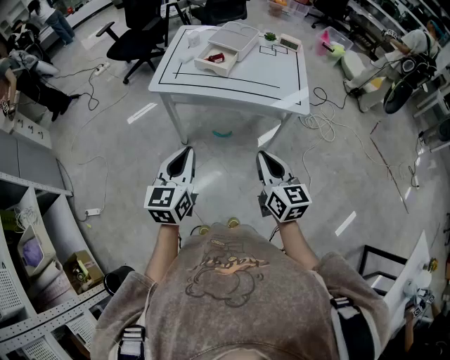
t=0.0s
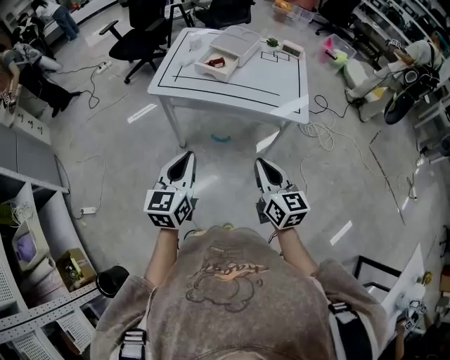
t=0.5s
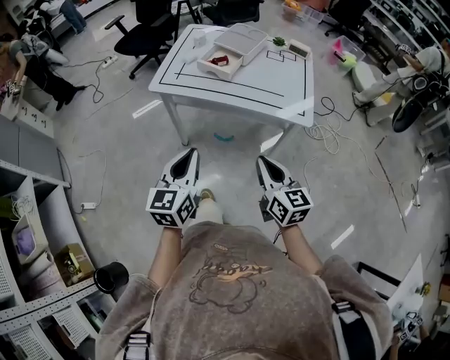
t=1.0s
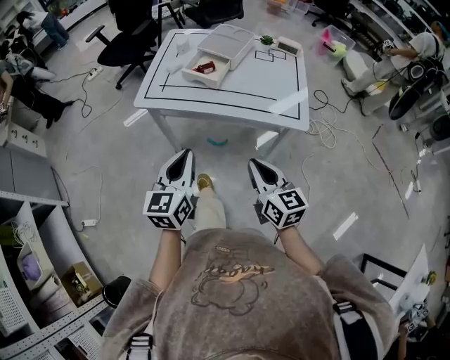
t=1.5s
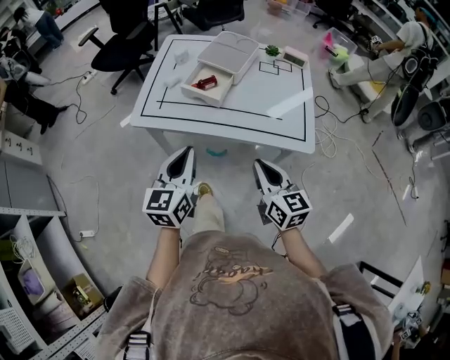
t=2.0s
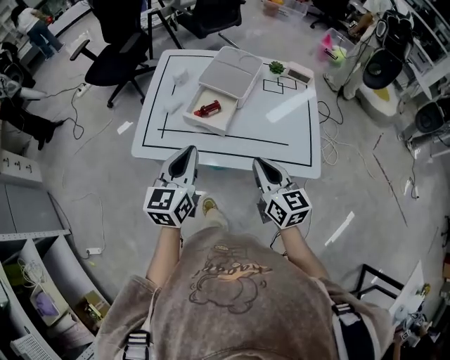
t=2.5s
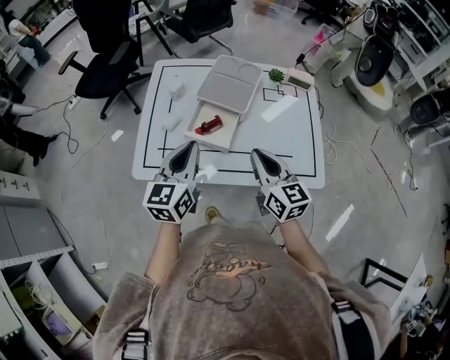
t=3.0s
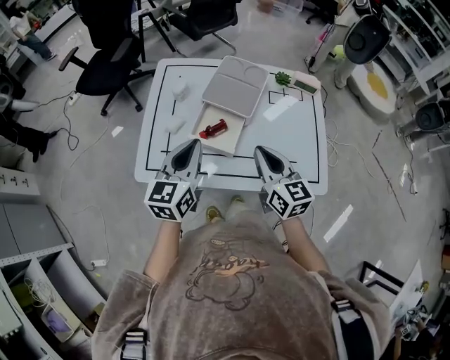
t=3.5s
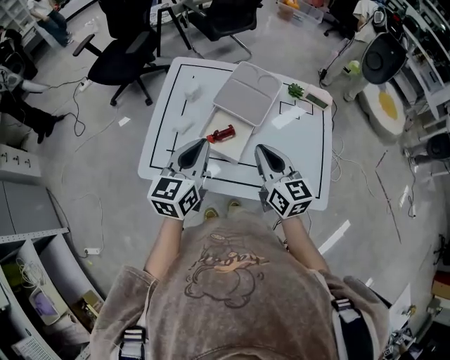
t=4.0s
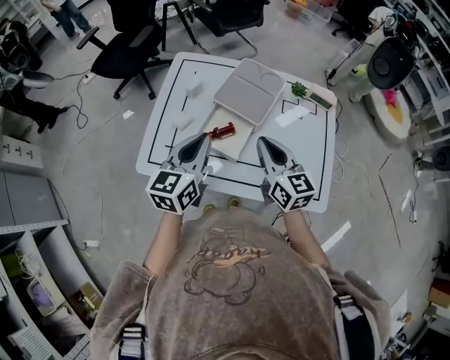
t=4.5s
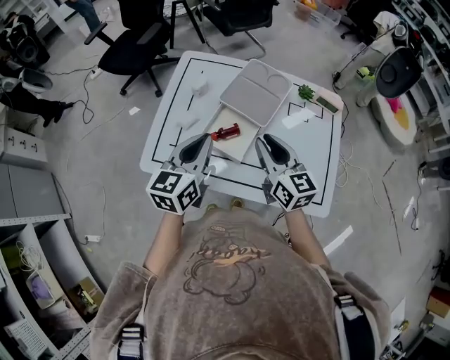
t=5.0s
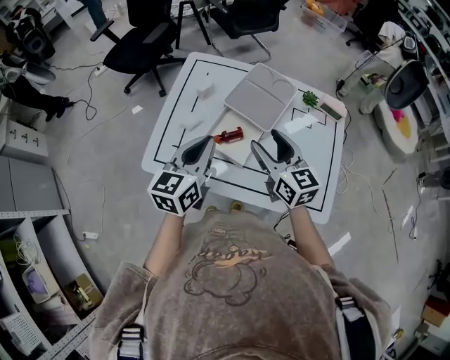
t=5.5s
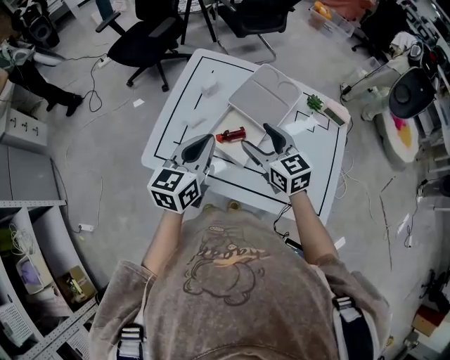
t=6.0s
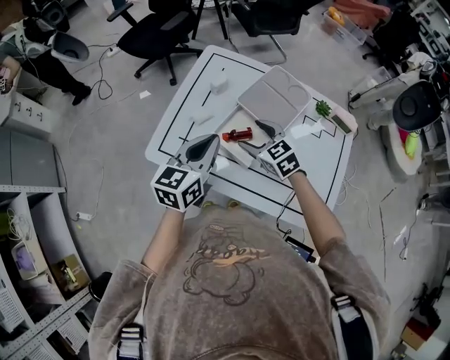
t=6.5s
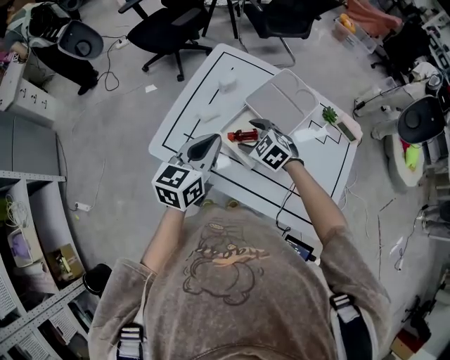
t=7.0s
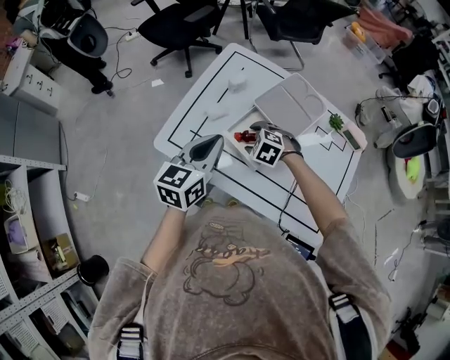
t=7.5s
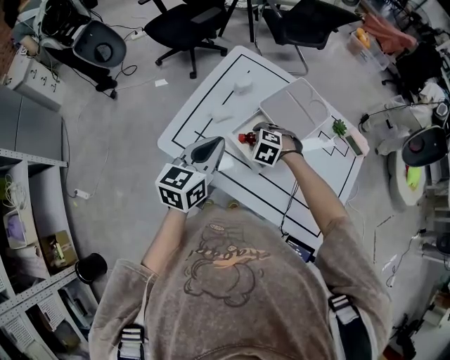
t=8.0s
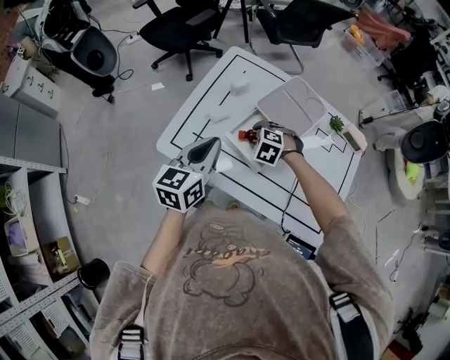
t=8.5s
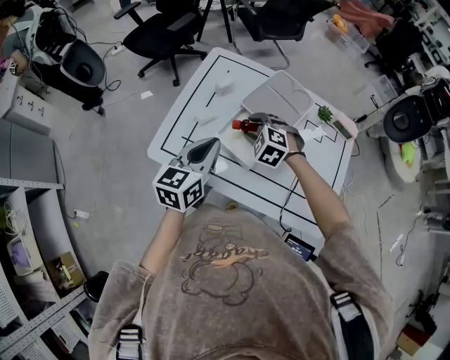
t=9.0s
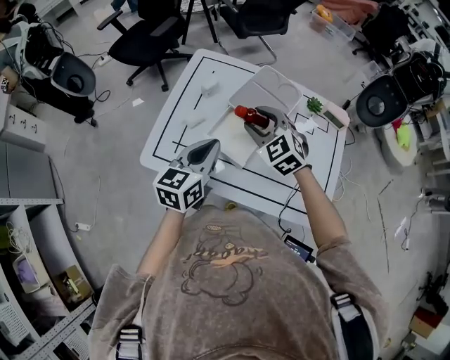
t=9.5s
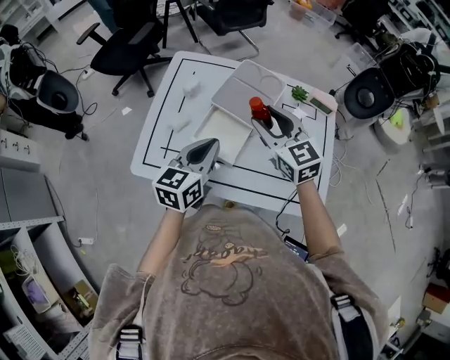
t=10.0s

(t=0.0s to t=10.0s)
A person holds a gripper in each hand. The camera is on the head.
t=0.0s - t=2.0s: The two grippers go some 20 cm forward.
t=2.0s - t=4.0s: The two grippers go about 25 cm forward.
t=4.0s - t=6.0s: The right gripper heads forward, covering about 5 cm, rotates approximately 20 degrees, and opens up.
t=6.0s - t=8.0s: The right gripper heads downward, covering about 15 cm, and points its fingers about 50 degrees further downward.
t=8.0s - t=10.0s: The right gripper heads upward and to the right, covering approximately 25 cm, and angles its fingers upward, by about 50 degrees; the left gripper shifts about 10 cm to the right.

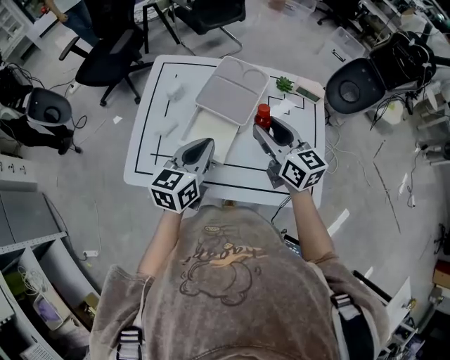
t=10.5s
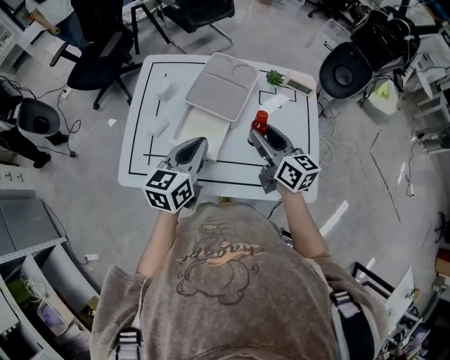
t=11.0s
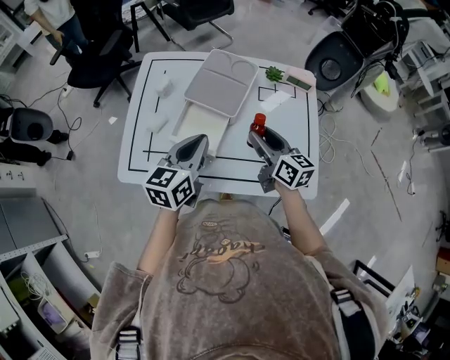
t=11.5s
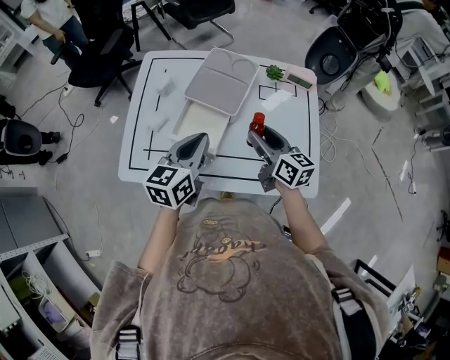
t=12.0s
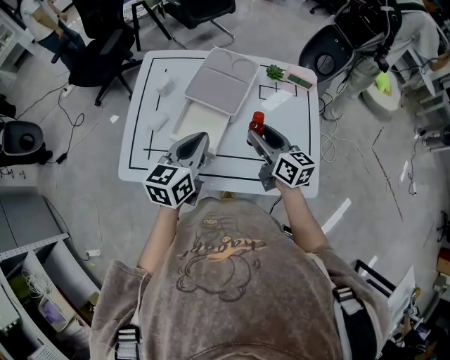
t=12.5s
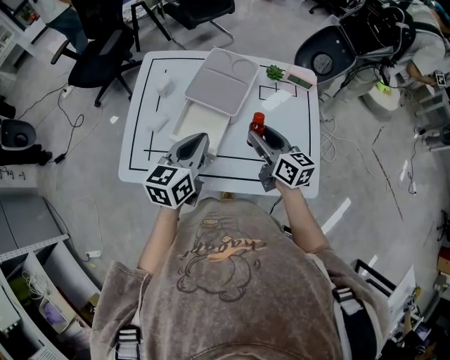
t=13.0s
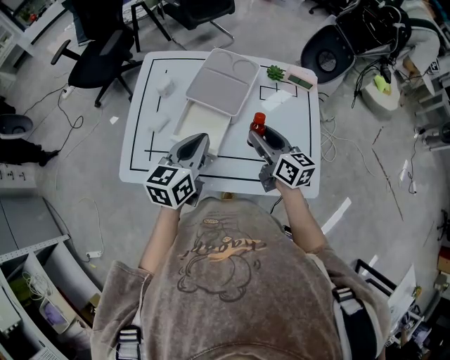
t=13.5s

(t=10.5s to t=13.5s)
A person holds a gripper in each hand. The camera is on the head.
t=10.5s - t=12.0s: The right gripper is displaced downward and backward by roughly 10 cm.
t=12.0s - t=13.5s: Both grippers stay about where they are.

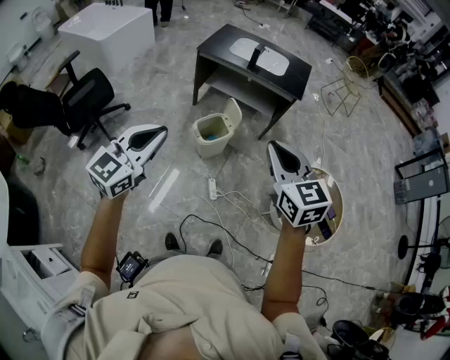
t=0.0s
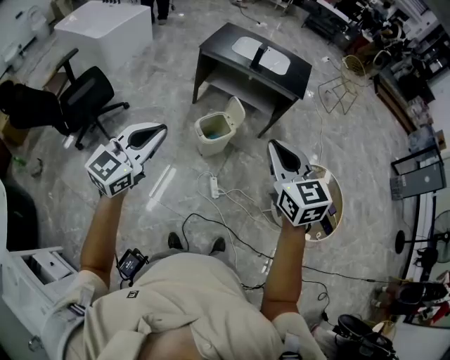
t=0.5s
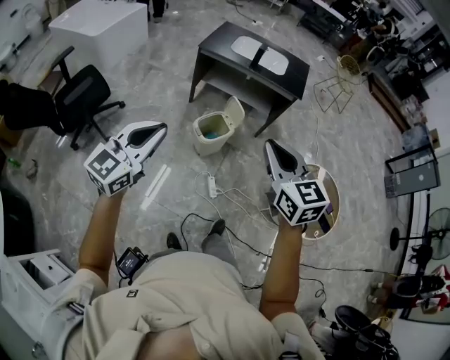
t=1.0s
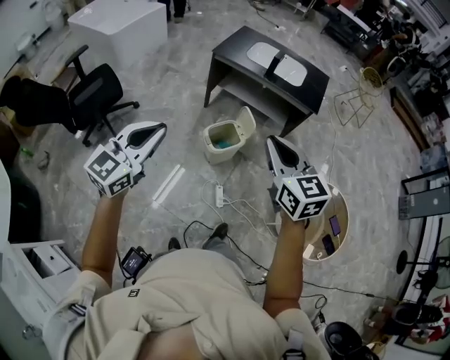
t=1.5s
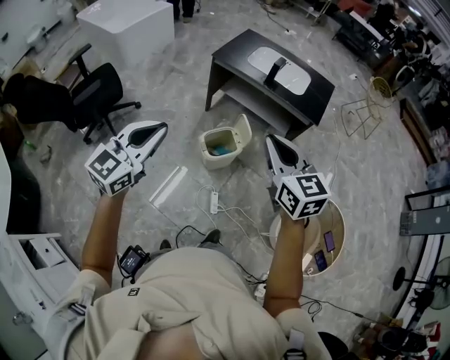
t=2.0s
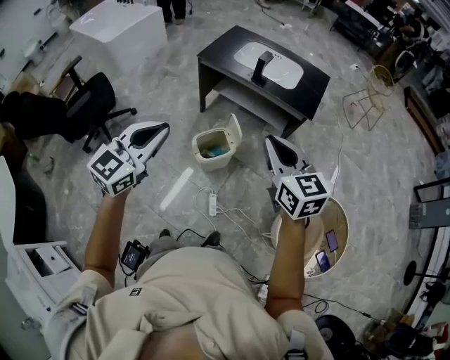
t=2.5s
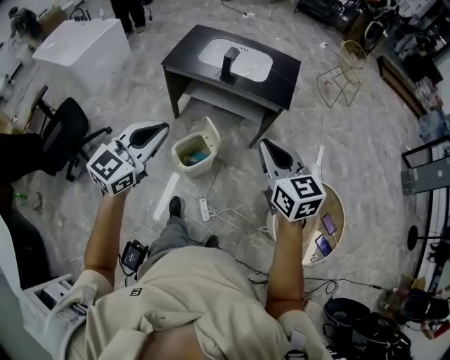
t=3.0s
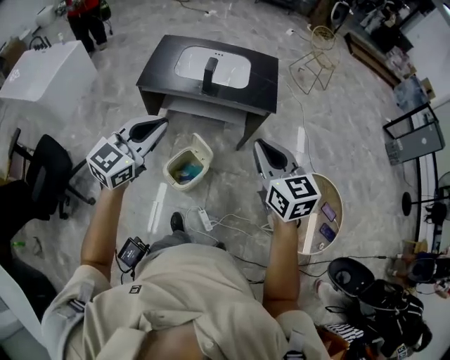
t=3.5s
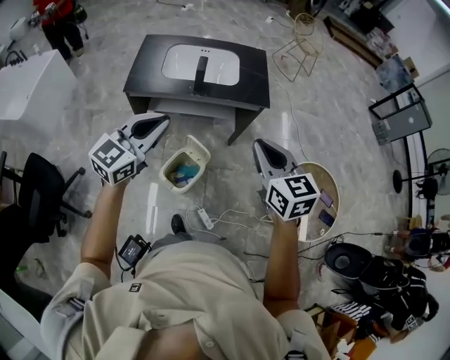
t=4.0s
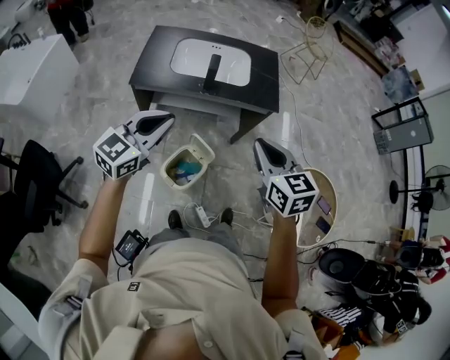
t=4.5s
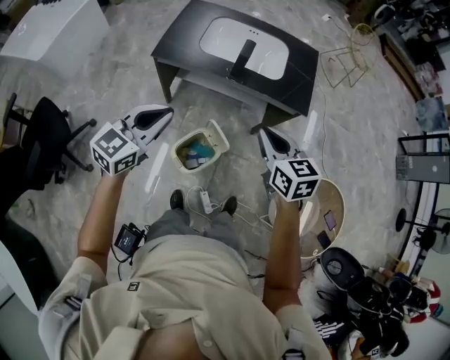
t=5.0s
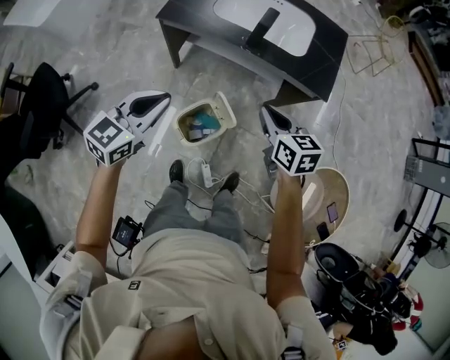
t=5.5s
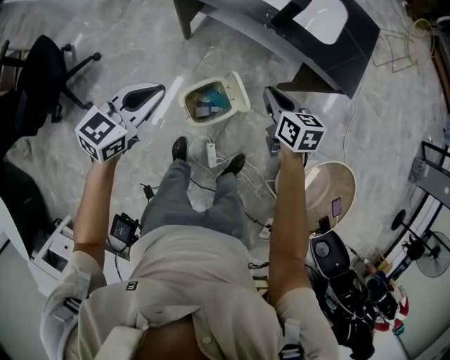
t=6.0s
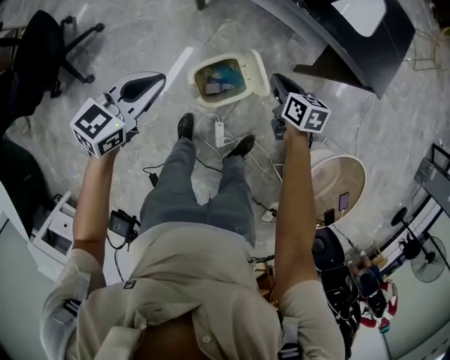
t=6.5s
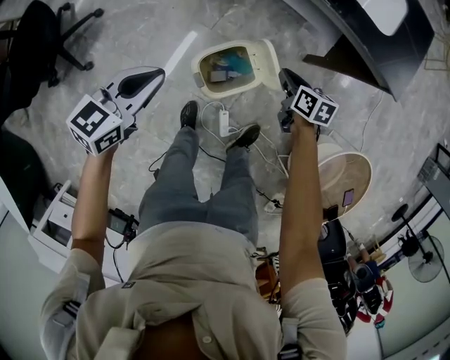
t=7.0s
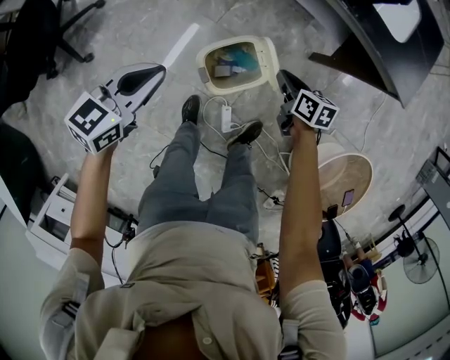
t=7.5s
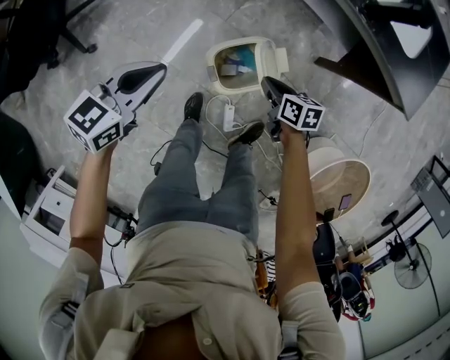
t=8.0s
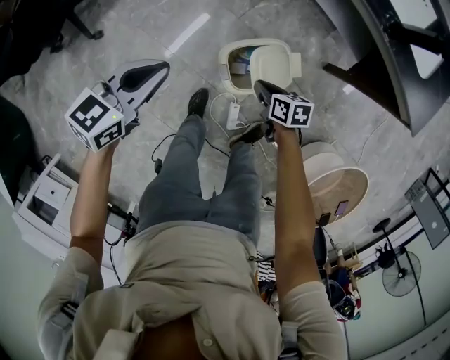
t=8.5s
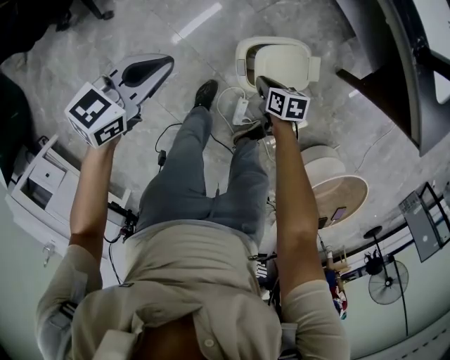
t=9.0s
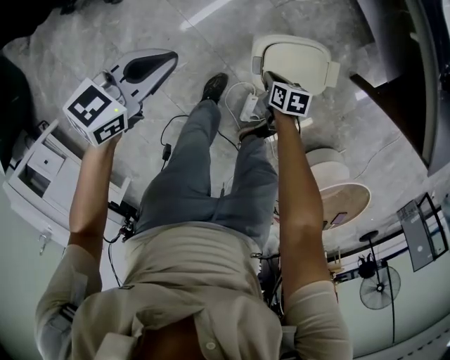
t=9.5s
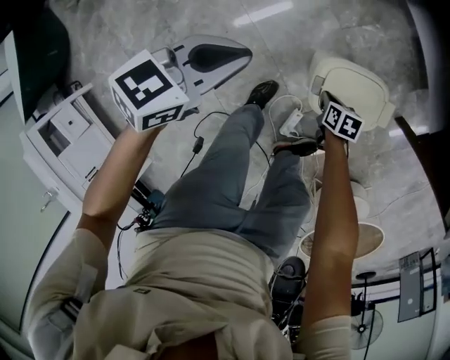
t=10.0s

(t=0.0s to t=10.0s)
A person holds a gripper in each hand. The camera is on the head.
t=0.0s - t=2.0s: The grippers both shift forward by approximately 15 cm.
t=2.0s - t=4.0s: The left gripper ends up approximately 35 cm from where it was, and turns by roughly 30 degrees. Meanwhile the right gripper moves roughly 20 cm, and rotates approximately 30 degrees.
t=4.0s - t=6.0s: The left gripper travels downward by roughly 25 cm, and swivels roughly 30 degrees, while the right gripper shifts about 40 cm downward and forward, and rotates approximately 30 degrees.
t=6.0s - t=8.0s: The right gripper heads downward, covering roughly 25 cm, and turns by about 30 degrees, while the left gripper goes some 20 cm downward and to the left.
t=8.0s - t=10.0s: The left gripper shifts about 15 cm to the left and downward. Meanwhile the right gripper is displaced downward and to the left by approximately 25 cm, and turns by some 30 degrees.

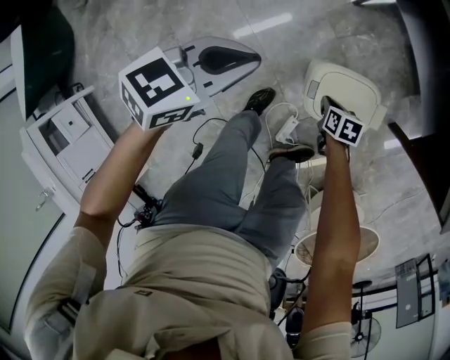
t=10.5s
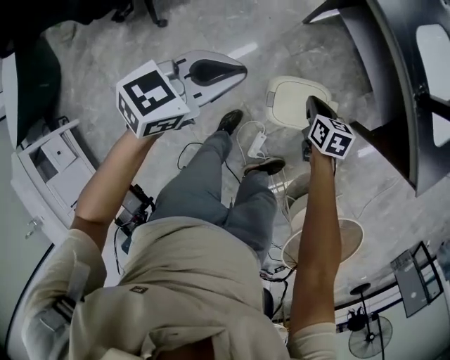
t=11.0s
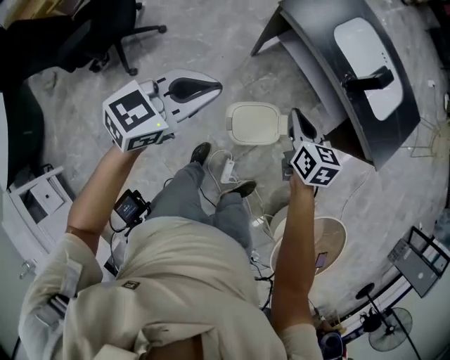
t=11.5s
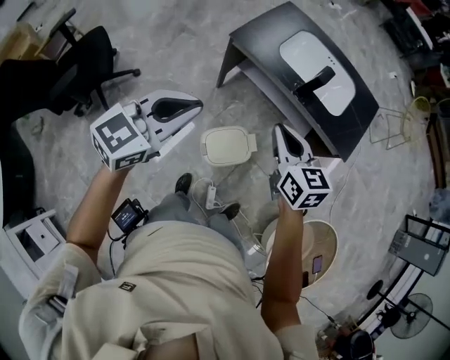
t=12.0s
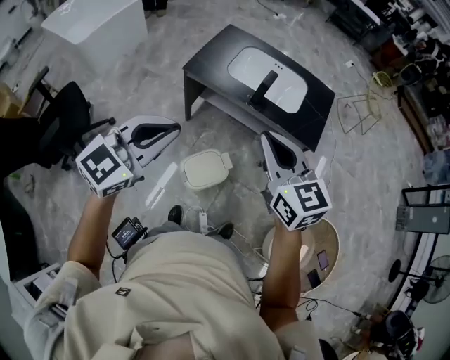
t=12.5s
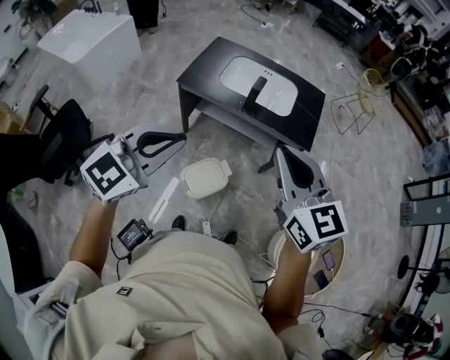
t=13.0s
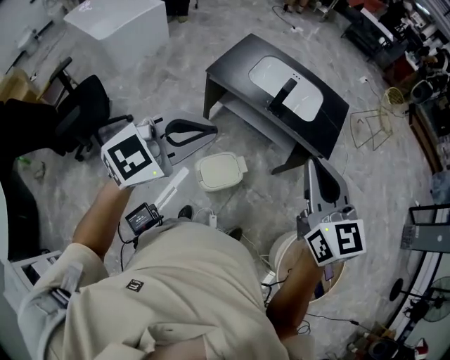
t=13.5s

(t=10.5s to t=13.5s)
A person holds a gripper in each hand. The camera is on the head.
t=10.5s - t=12.0s: The left gripper shifts about 40 cm upward, and rotates approximately 30 degrees. Meanwhile the right gripper travels upward by some 60 cm, and points its fingers roughly 40 degrees further upward.
t=12.0s - t=13.5s: The right gripper travels upward, backward and to the right by approximately 30 cm, and swivels about 20 degrees. Meanwhile the left gripper is displaced upward, to the right and backward by about 20 cm.
